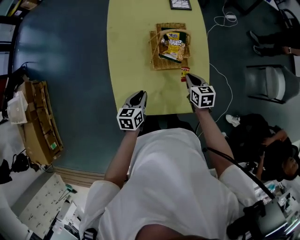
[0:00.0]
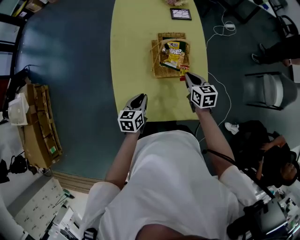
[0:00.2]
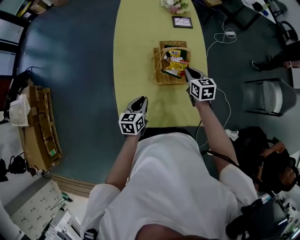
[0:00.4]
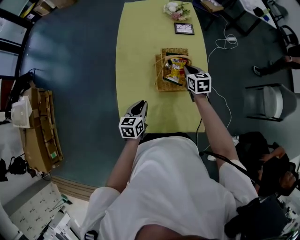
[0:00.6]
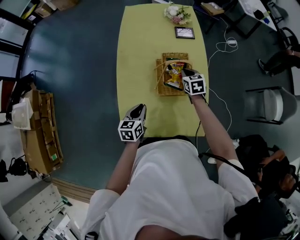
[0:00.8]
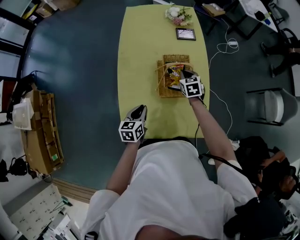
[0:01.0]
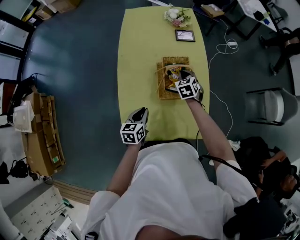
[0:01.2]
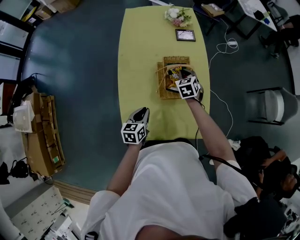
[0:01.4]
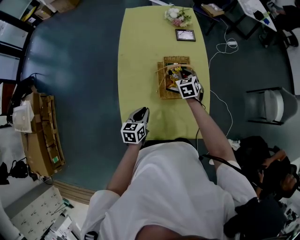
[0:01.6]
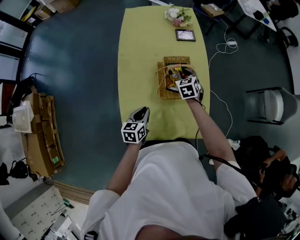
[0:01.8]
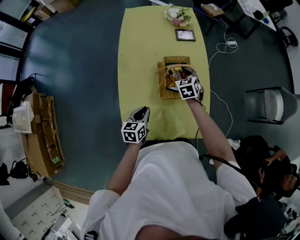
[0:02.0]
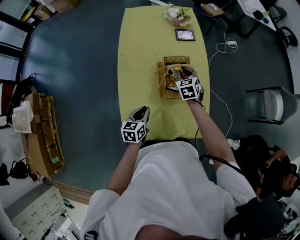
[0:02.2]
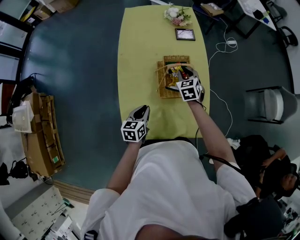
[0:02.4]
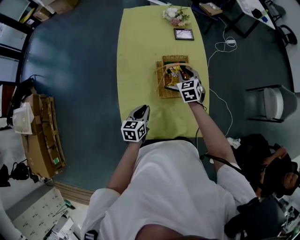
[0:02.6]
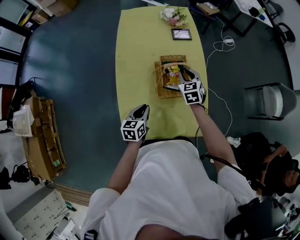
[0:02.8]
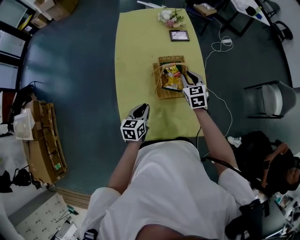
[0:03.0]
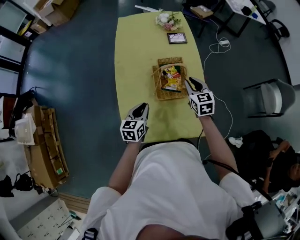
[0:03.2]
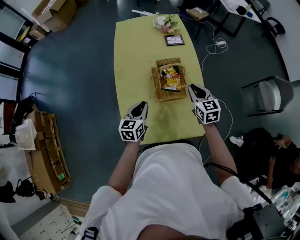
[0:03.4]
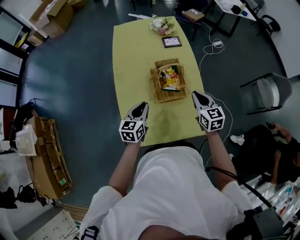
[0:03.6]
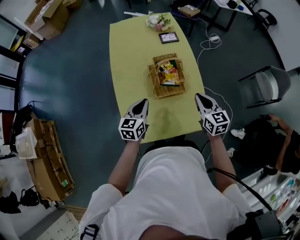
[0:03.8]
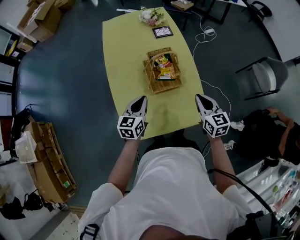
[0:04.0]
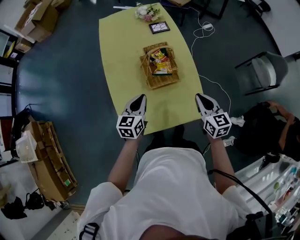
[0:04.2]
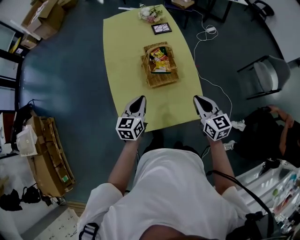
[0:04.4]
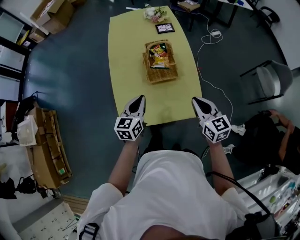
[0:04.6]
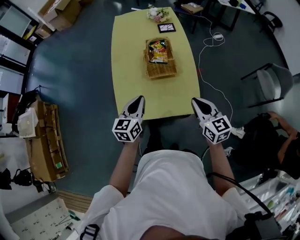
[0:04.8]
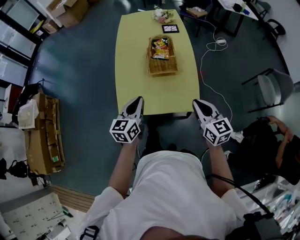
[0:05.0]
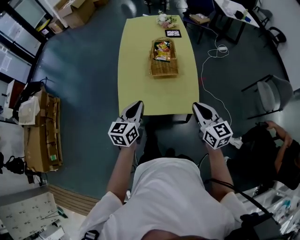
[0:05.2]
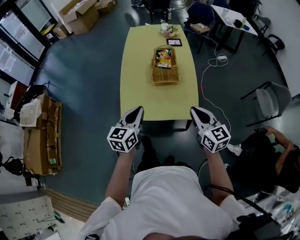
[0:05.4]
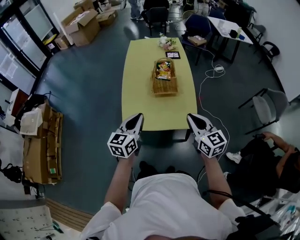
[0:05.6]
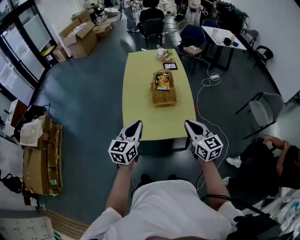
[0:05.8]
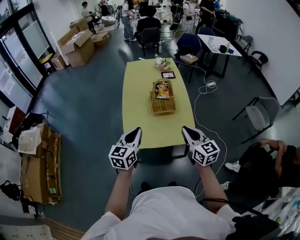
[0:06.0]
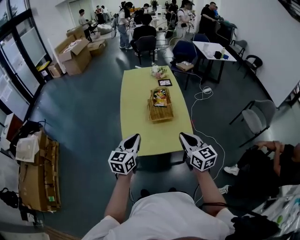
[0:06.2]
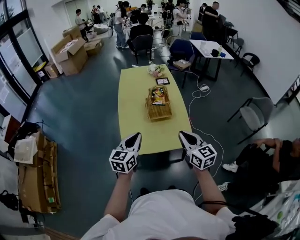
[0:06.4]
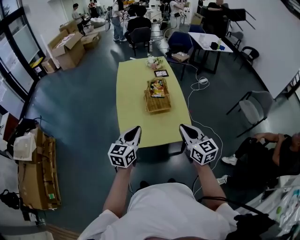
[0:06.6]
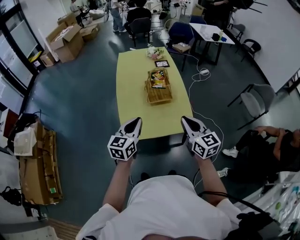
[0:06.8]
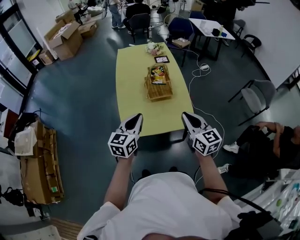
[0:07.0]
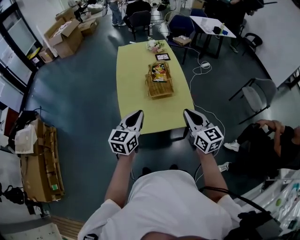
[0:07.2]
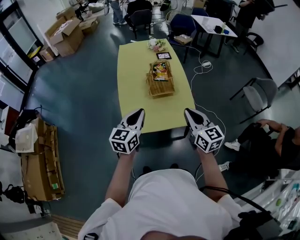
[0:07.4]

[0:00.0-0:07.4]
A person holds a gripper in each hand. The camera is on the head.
0:00.0 to 0:01.4: The right gripper is displaced forward by approximately 20 cm, and swivels about 30 degrees, while the left gripper moves forward, about 5 cm.
0:01.4 to 0:03.0: The right gripper is displaced upward by about 5 cm.
0:03.0 to 0:04.4: The right gripper travels backward by about 25 cm, and swivels approximately 20 degrees, while the left gripper goes some 10 cm upward and backward.
0:04.4 to 0:06.0: Both grippers travel together backward and upward, approximately 25 cm.
0:06.0 to 0:07.4: The grippers stay close to where they were, moving slightly.

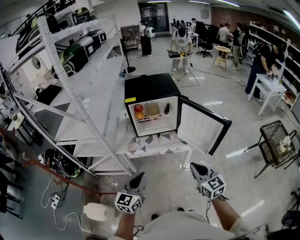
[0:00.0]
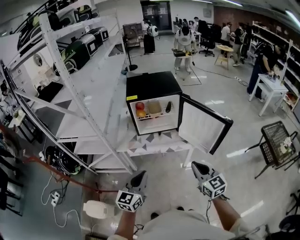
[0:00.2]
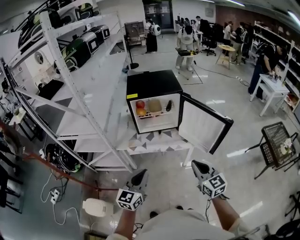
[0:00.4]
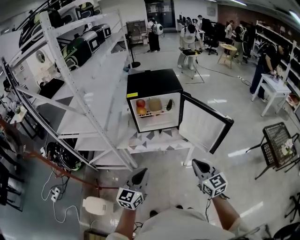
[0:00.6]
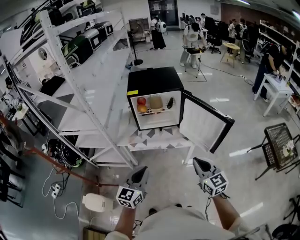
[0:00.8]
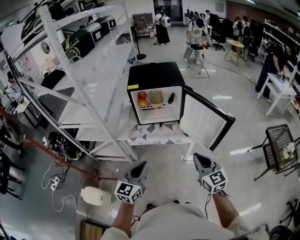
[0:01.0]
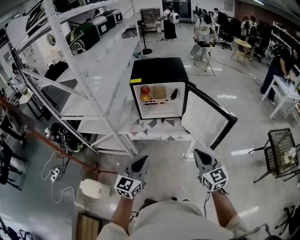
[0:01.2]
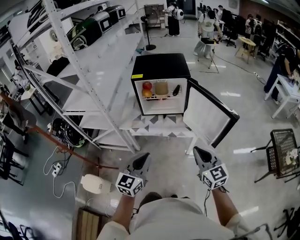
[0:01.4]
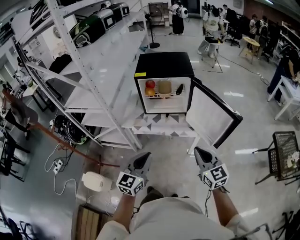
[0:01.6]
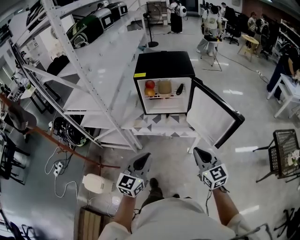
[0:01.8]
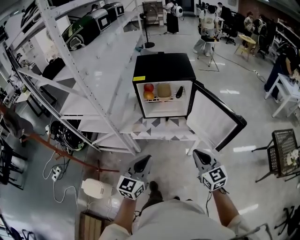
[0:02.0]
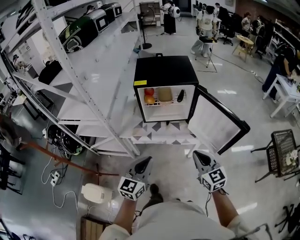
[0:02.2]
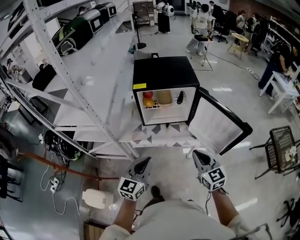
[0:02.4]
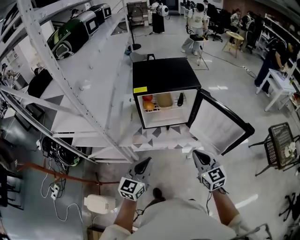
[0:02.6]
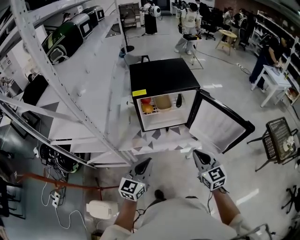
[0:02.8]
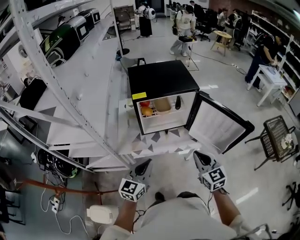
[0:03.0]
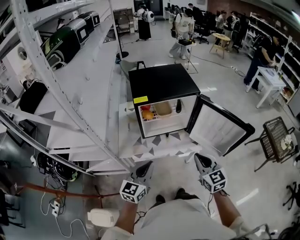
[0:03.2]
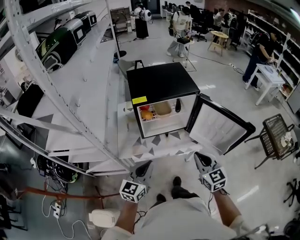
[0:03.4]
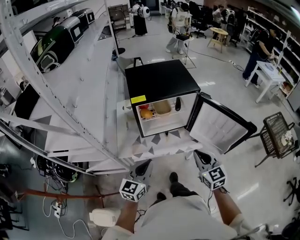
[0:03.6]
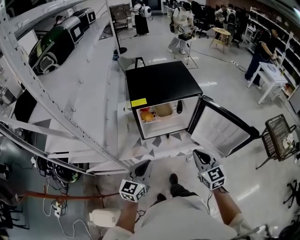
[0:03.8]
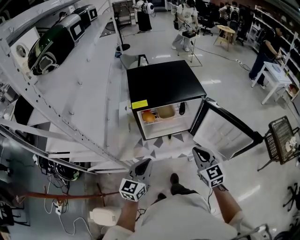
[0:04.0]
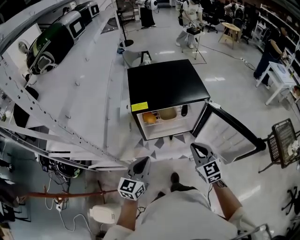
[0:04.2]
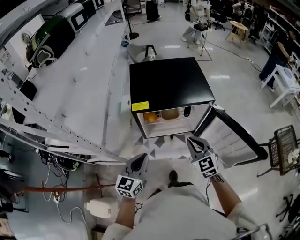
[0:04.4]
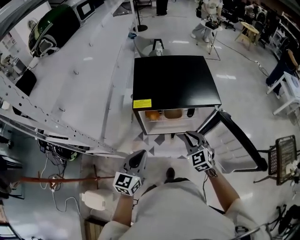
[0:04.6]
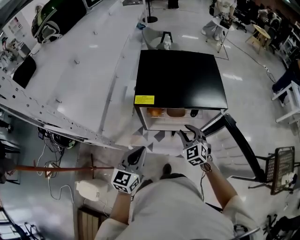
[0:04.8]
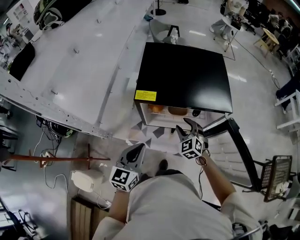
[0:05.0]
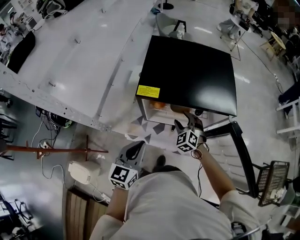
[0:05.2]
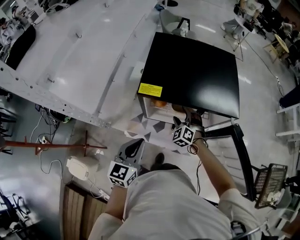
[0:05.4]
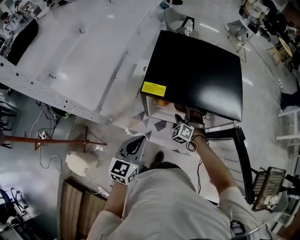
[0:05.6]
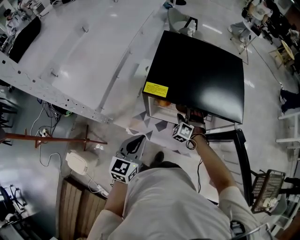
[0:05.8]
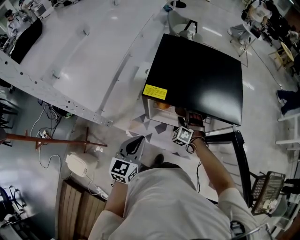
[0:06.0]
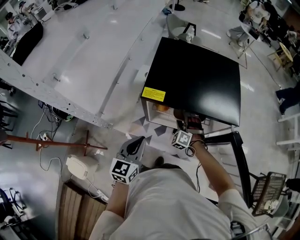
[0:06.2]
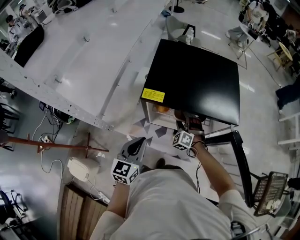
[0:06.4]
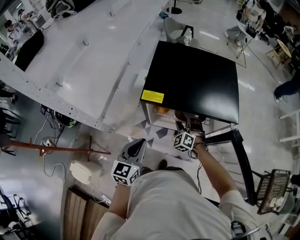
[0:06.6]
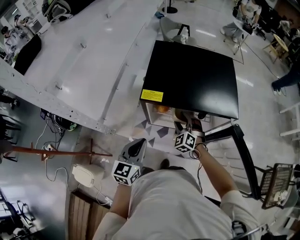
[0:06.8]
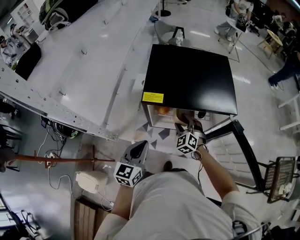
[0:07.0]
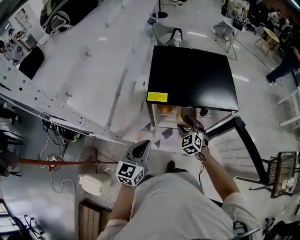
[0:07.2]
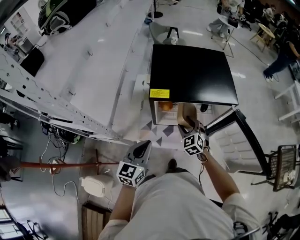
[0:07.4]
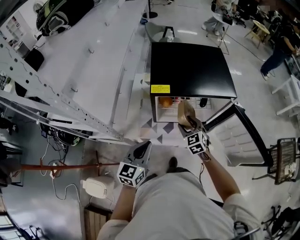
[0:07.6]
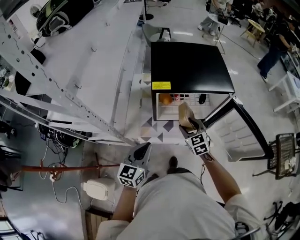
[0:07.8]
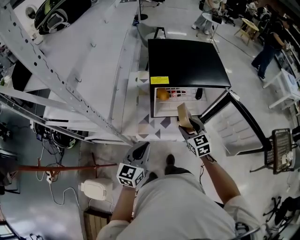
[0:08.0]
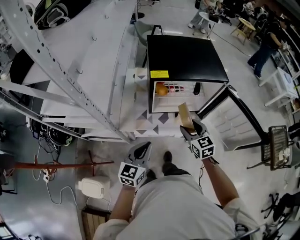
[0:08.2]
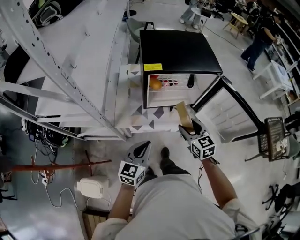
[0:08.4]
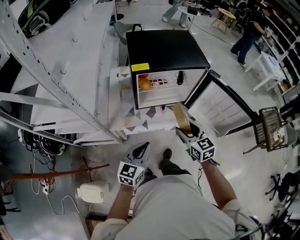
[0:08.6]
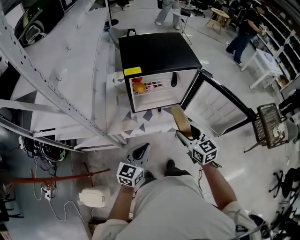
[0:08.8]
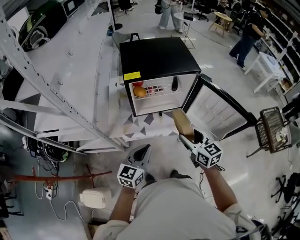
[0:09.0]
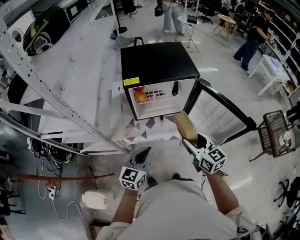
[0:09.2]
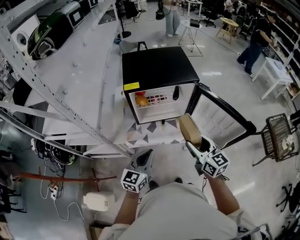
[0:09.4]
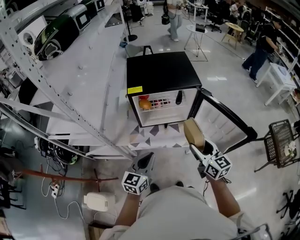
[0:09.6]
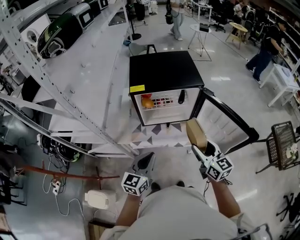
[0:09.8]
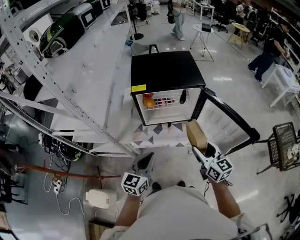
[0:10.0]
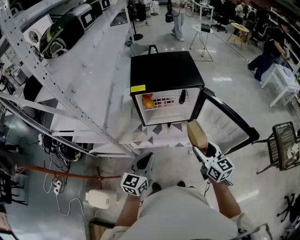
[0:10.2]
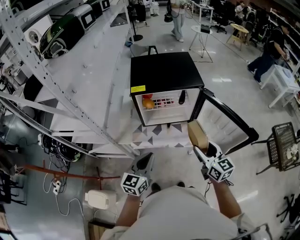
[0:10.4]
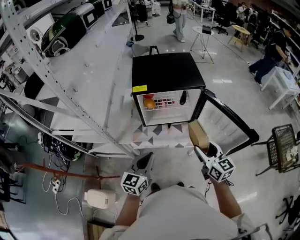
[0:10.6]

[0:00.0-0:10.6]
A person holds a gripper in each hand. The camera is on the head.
0:00.0 to 0:01.6: The left gripper is displaced to the right by some 5 cm; the right gripper ends up roughly 5 cm from where it was.
0:01.6 to 0:03.0: The two grippers go roughly 20 cm forward and to the left.
0:03.0 to 0:04.6: The right gripper moves forward, about 25 cm, and changes its angle by some 30 degrees. The left gripper shifts roughly 15 cm forward.
0:04.6 to 0:06.0: The right gripper travels downward and forward by about 25 cm, rotates around the line of its fingers by about 40 degrees, counterclockwise from behind, and opens its fingers. Meanwhile the left gripper goes some 5 cm downward.
0:06.0 to 0:07.6: The left gripper shifts roughly 5 cm backward. Meanwhile the right gripper is displaced backward and upward by approximately 15 cm, and rotates around the line of its fingers by about 50 degrees, clockwise from behind.
0:07.6 to 0:09.0: The left gripper is displaced backward and to the right by roughly 15 cm. Meanwhile the right gripper moves backward, upward and to the right, roughly 25 cm, and rotates about 40 degrees.
0:09.0 to 0:10.6: The right gripper is displaced to the right by roughly 10 cm.

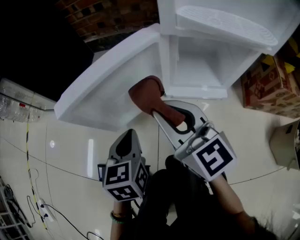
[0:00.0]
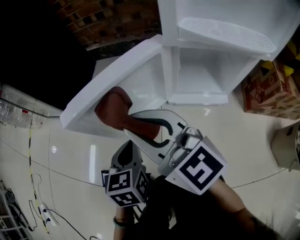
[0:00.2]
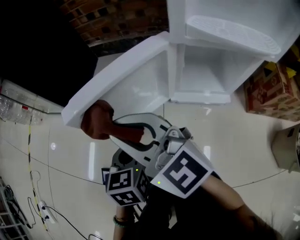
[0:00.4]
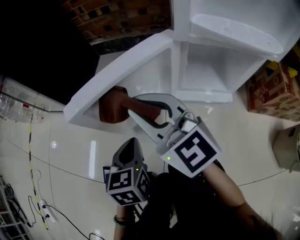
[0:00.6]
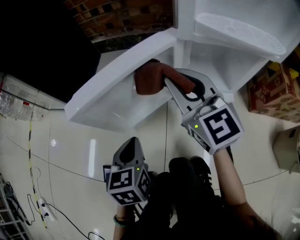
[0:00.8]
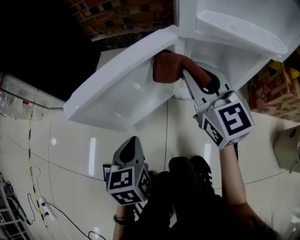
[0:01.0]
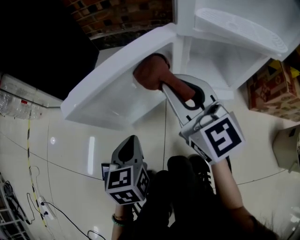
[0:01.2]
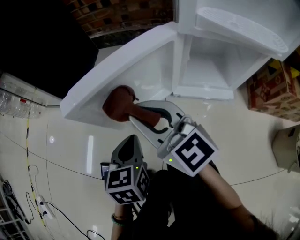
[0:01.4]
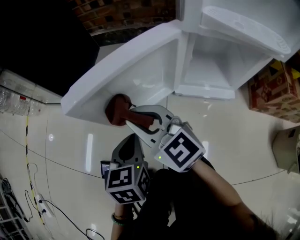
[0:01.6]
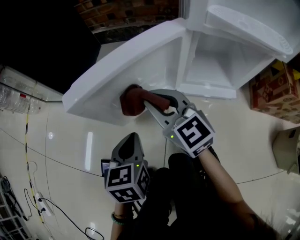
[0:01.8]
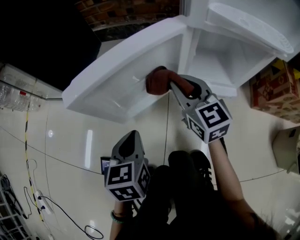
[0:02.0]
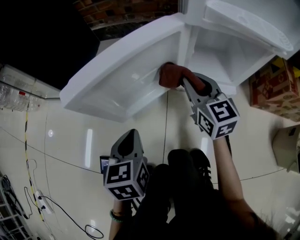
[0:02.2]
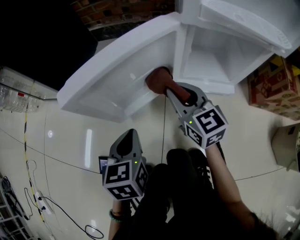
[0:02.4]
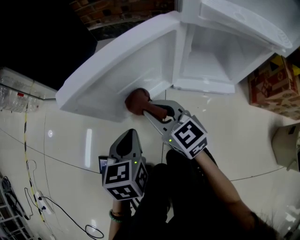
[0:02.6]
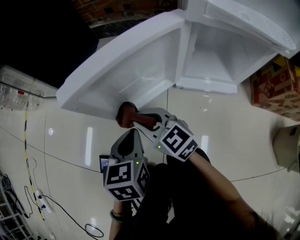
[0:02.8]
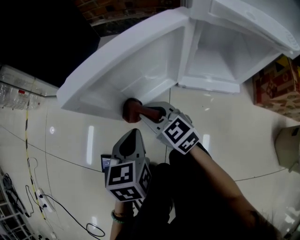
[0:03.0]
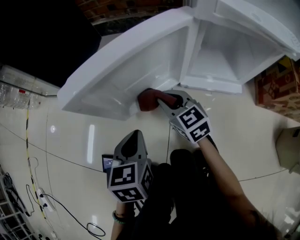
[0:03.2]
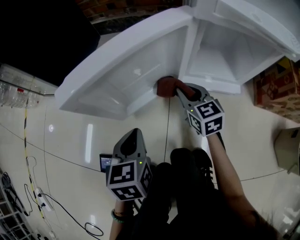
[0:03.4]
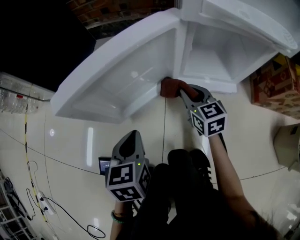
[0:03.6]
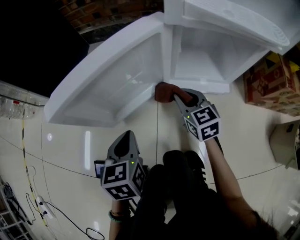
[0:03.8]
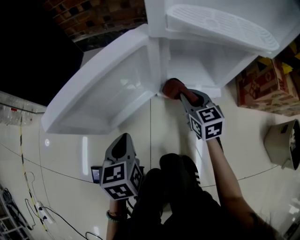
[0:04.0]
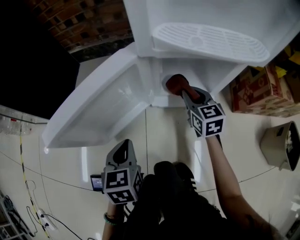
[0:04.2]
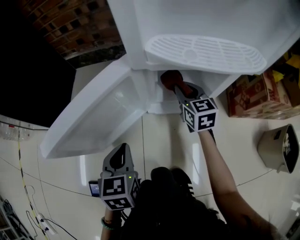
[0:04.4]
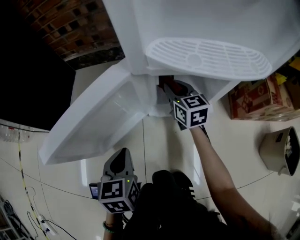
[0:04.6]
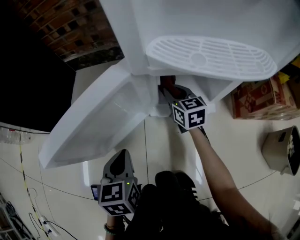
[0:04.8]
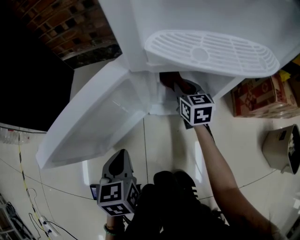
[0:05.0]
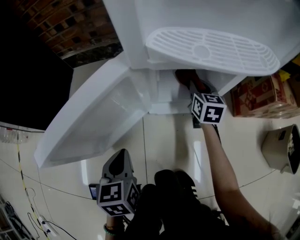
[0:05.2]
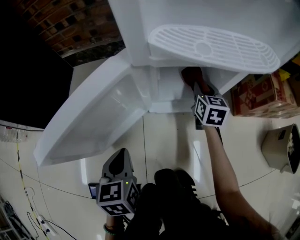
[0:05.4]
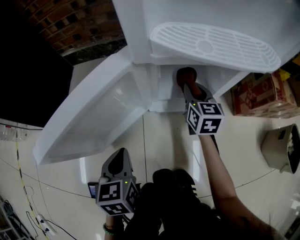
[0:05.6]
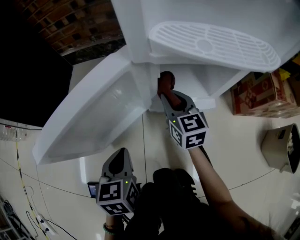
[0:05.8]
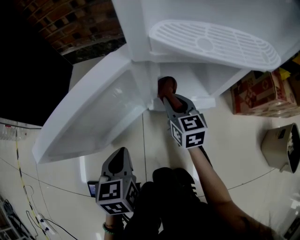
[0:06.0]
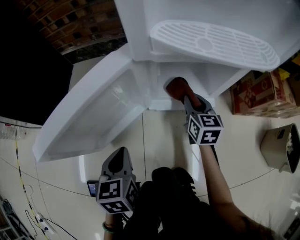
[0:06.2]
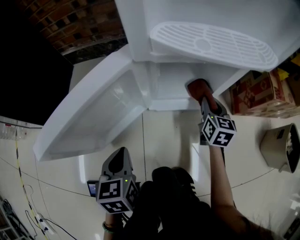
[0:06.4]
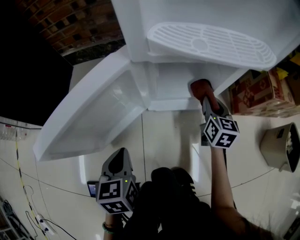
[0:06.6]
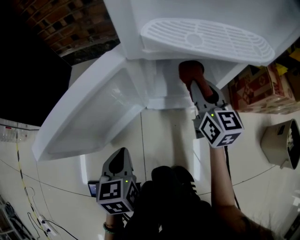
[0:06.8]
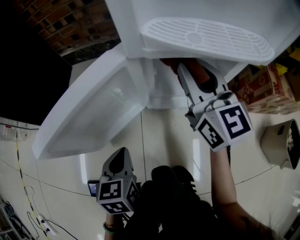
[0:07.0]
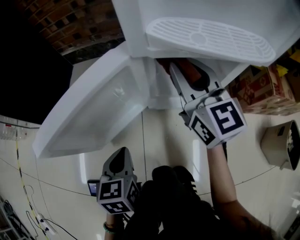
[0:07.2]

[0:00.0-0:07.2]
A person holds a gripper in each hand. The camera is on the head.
0:00.0 to 0:01.4: The right gripper moves left and right over roughly 20 cm, changing direction 2 times.
0:01.4 to 0:02.8: The right gripper is displaced downward by approximately 15 cm, and moves some 15 cm to the right and comes back.
0:02.8 to 0:04.4: The left gripper ends up roughly 10 cm from where it was. The right gripper moves some 35 cm, and swivels about 50 degrees.
0:04.4 to 0:05.8: The right gripper goes left and right, approximately 15 cm each way, reversing 2 times.
0:05.8 to 0:07.2: The right gripper goes approximately 20 cm upward, and rotates roughly 20 degrees.
